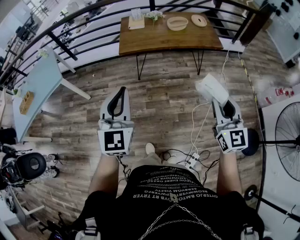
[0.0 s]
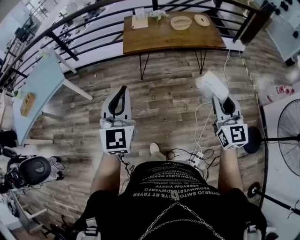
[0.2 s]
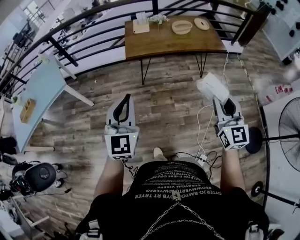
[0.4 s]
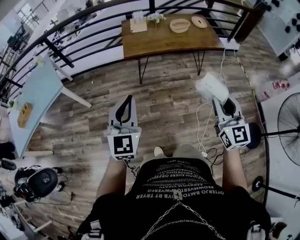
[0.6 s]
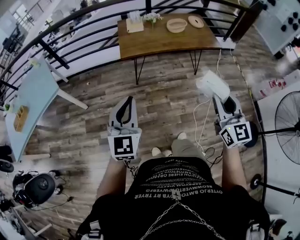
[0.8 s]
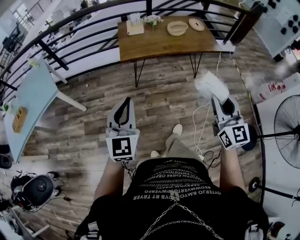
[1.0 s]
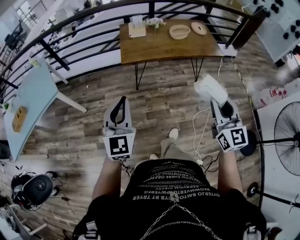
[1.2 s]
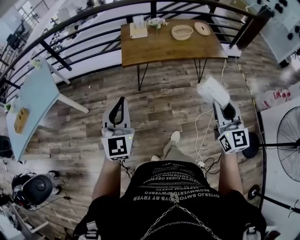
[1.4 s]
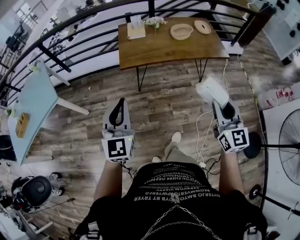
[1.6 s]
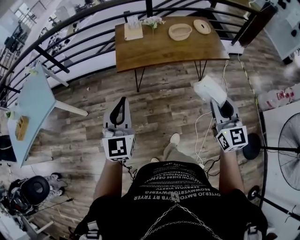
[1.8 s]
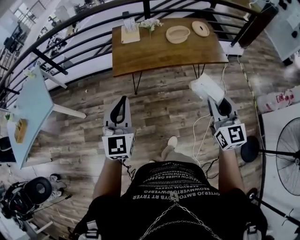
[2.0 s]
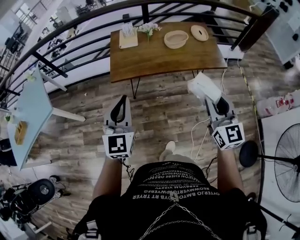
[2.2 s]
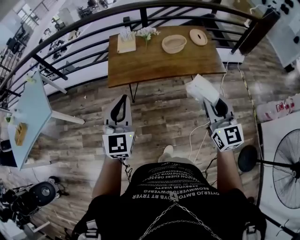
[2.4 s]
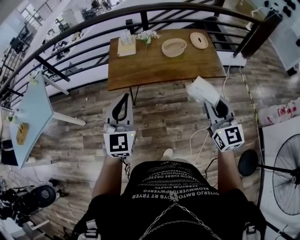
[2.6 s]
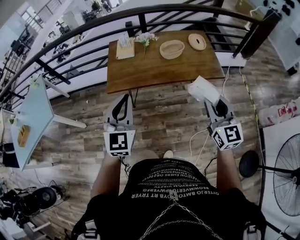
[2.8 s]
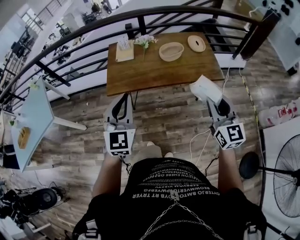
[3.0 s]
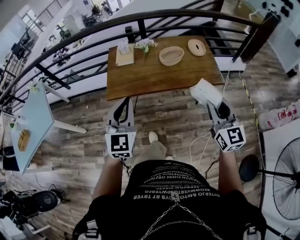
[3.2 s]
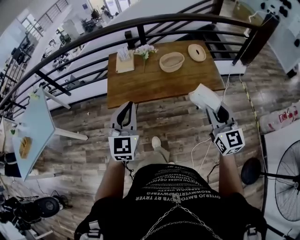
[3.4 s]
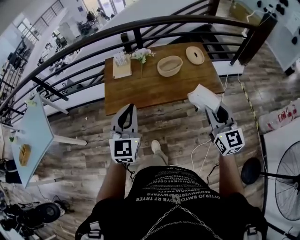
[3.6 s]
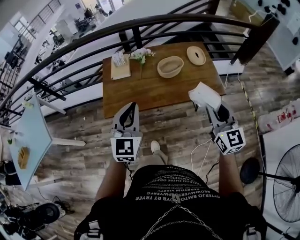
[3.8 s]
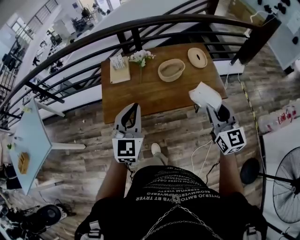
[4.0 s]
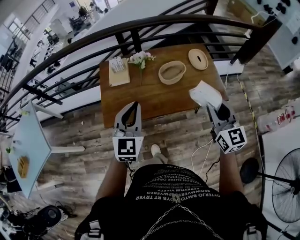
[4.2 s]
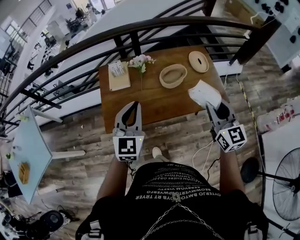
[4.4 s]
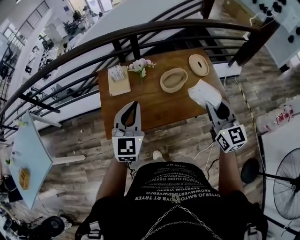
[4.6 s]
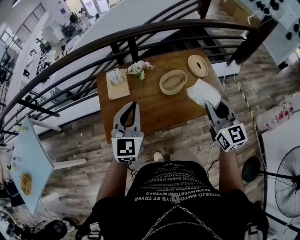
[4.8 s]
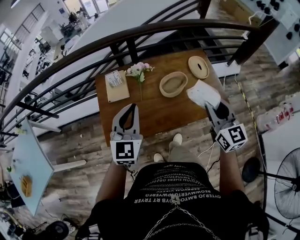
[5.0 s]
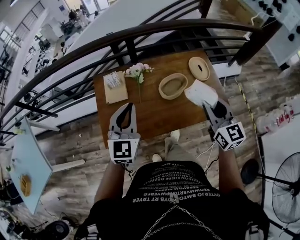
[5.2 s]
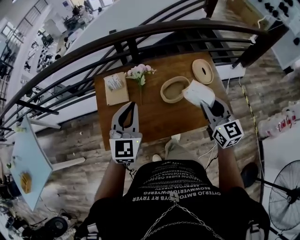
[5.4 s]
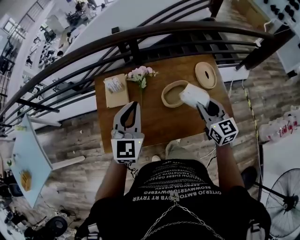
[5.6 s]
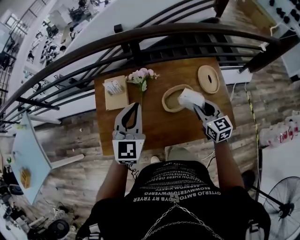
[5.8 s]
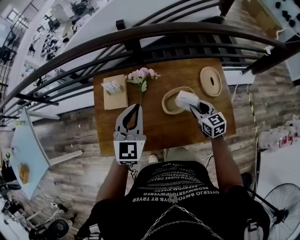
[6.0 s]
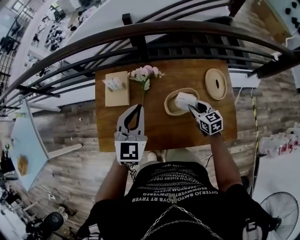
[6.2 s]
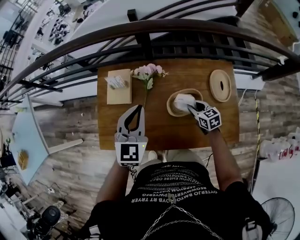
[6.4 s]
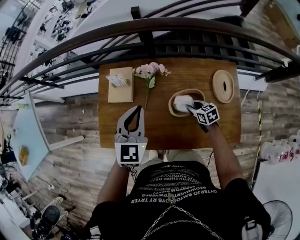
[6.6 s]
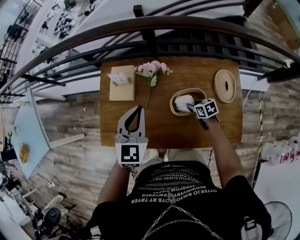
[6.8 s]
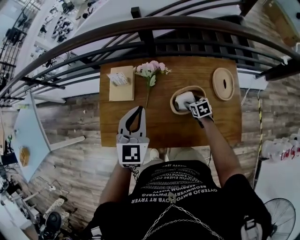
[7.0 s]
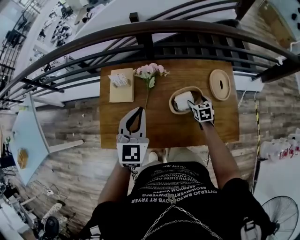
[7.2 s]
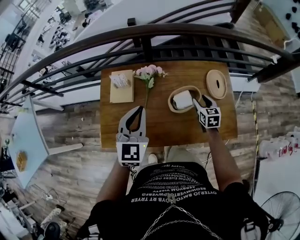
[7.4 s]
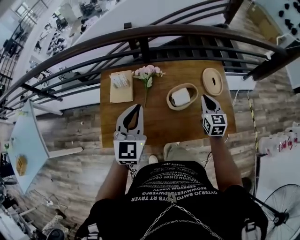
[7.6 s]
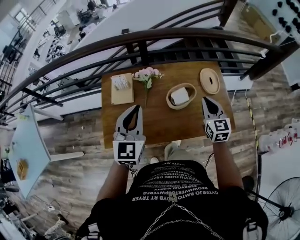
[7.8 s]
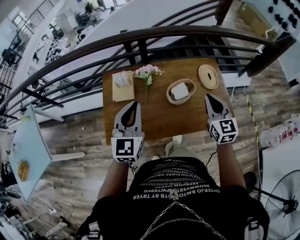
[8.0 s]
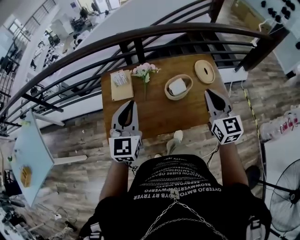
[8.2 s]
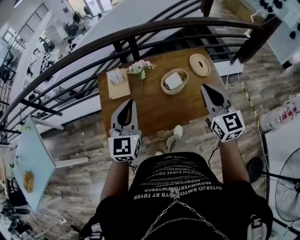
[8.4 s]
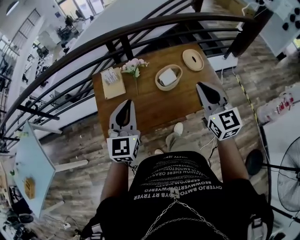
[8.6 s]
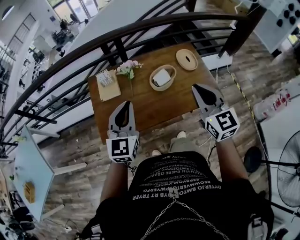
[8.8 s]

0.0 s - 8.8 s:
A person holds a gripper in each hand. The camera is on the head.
0.0 s - 1.4 s: The left gripper shifts approximately 15 cm forward, to the left and downward, while the right gripper travels forward and to the left by about 15 cm.
1.4 s - 3.0 s: Both grippers travel together forward and to the right, roughly 30 cm.
3.0 s - 4.4 s: The grippers both shift forward by about 25 cm.
4.4 s - 5.8 s: The right gripper shifts roughly 30 cm forward and downward, and rotates approximately 20 degrees. The left gripper heads forward, covering roughly 20 cm.
5.8 s - 7.4 s: The right gripper shifts approximately 10 cm downward, and opens.
7.4 s - 8.8 s: The left gripper travels backward by roughly 15 cm, while the right gripper moves upward and backward, roughly 40 cm, swivels about 30 degrees, and closes its fingers.

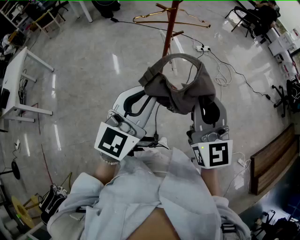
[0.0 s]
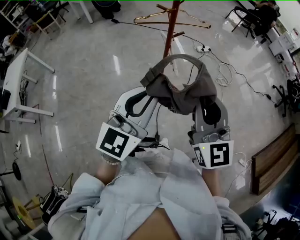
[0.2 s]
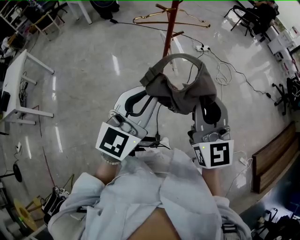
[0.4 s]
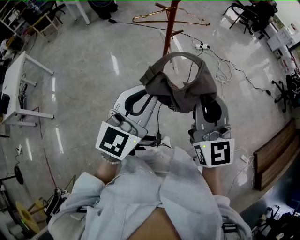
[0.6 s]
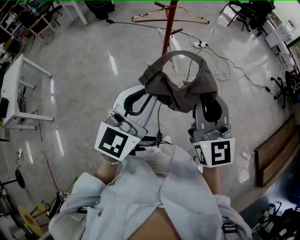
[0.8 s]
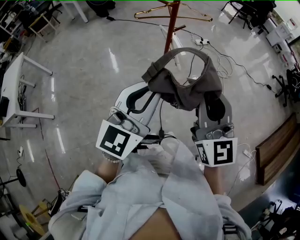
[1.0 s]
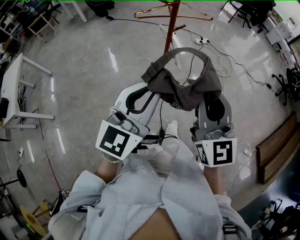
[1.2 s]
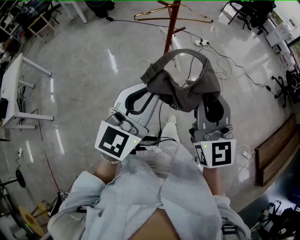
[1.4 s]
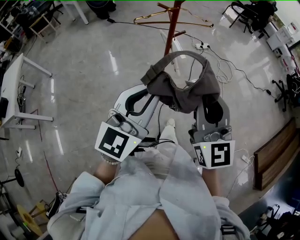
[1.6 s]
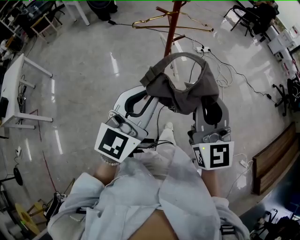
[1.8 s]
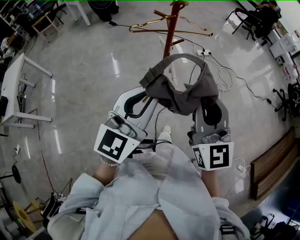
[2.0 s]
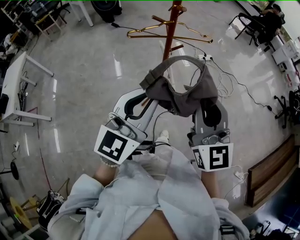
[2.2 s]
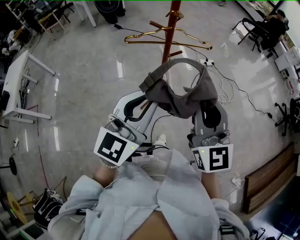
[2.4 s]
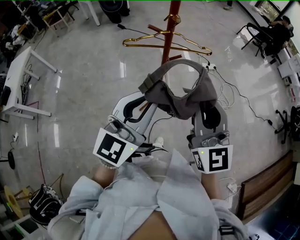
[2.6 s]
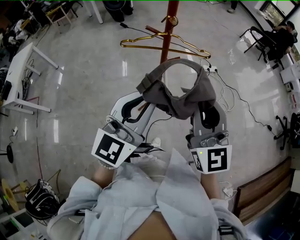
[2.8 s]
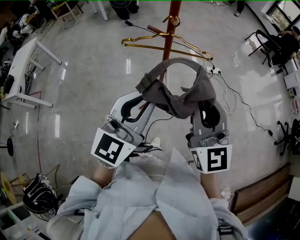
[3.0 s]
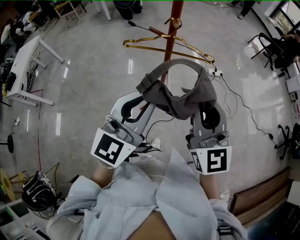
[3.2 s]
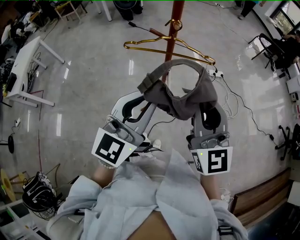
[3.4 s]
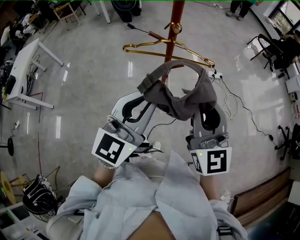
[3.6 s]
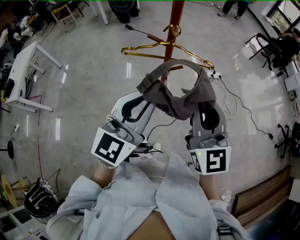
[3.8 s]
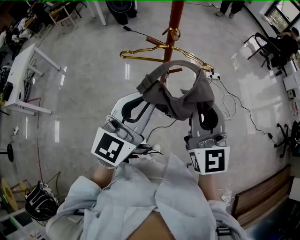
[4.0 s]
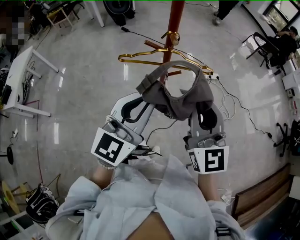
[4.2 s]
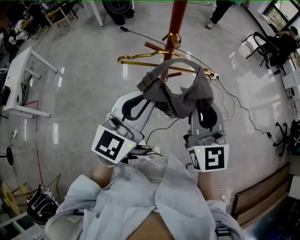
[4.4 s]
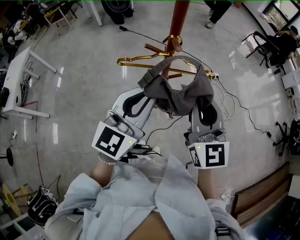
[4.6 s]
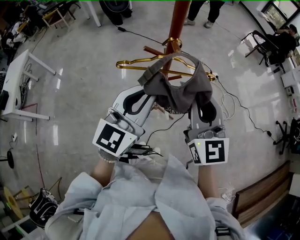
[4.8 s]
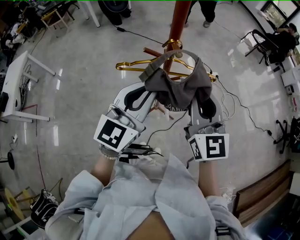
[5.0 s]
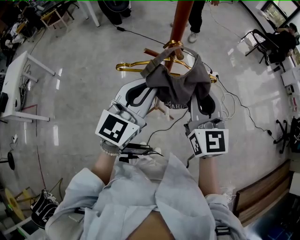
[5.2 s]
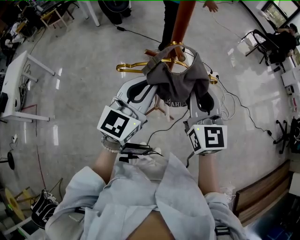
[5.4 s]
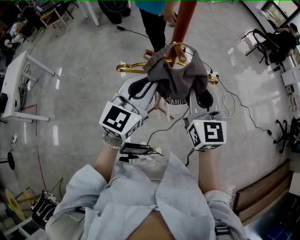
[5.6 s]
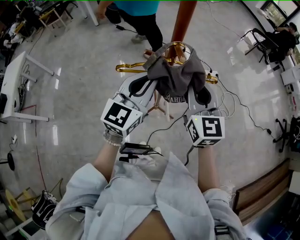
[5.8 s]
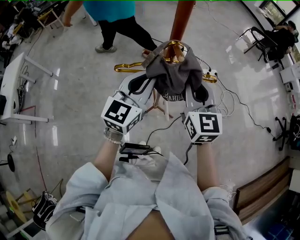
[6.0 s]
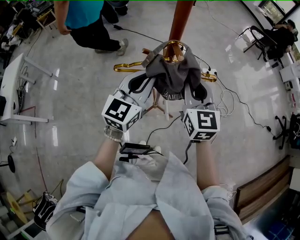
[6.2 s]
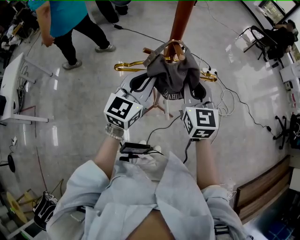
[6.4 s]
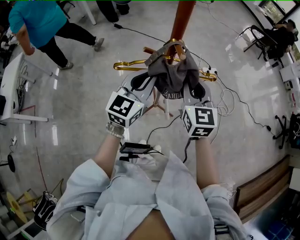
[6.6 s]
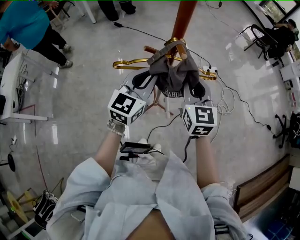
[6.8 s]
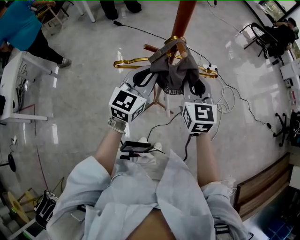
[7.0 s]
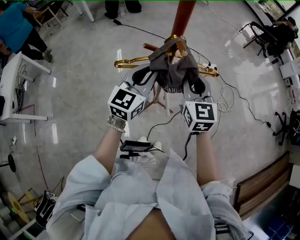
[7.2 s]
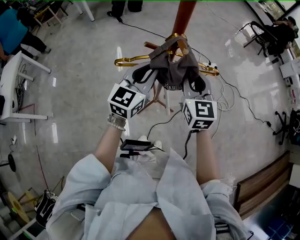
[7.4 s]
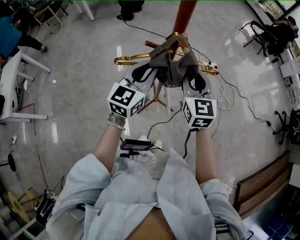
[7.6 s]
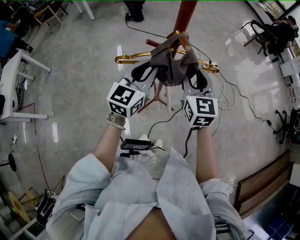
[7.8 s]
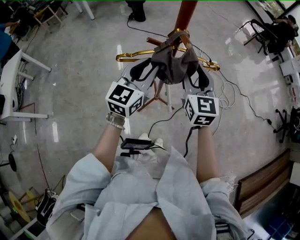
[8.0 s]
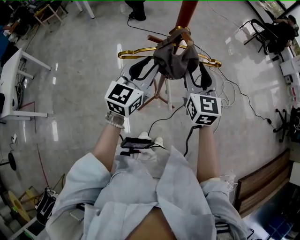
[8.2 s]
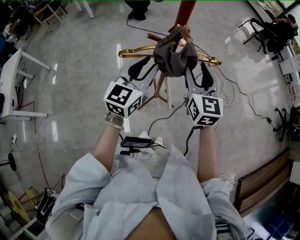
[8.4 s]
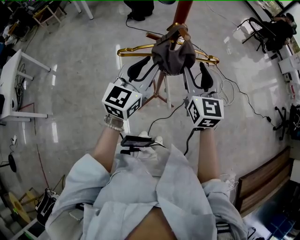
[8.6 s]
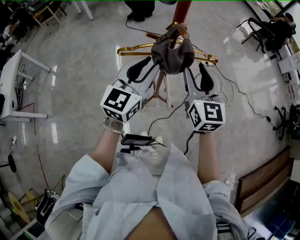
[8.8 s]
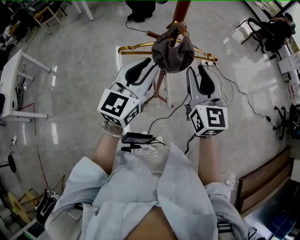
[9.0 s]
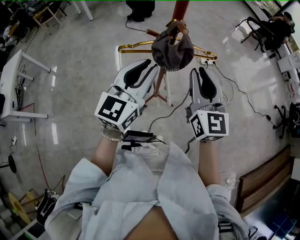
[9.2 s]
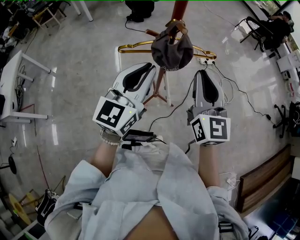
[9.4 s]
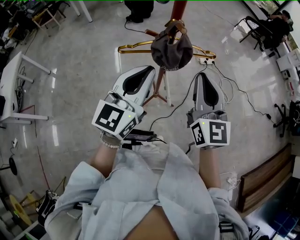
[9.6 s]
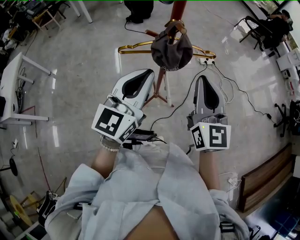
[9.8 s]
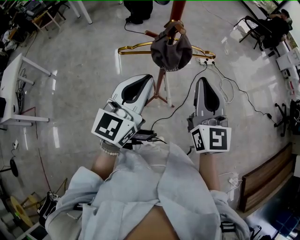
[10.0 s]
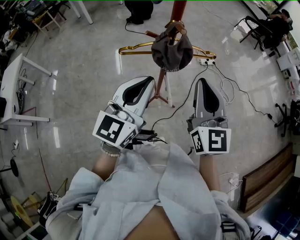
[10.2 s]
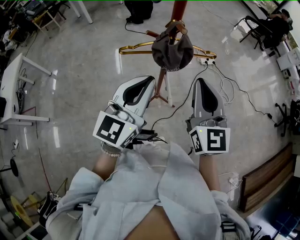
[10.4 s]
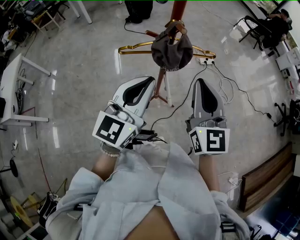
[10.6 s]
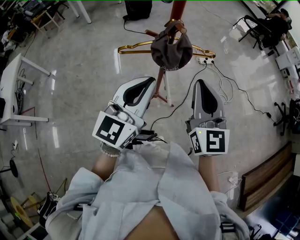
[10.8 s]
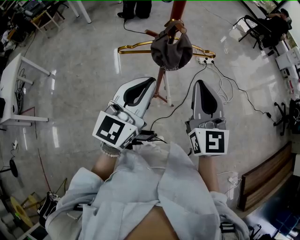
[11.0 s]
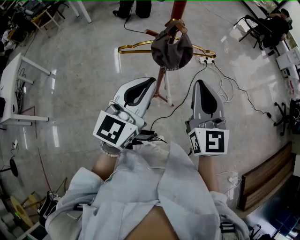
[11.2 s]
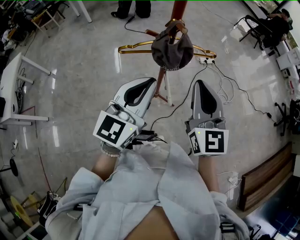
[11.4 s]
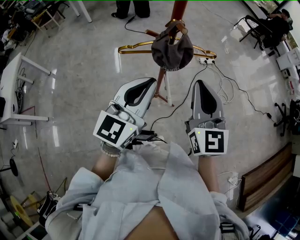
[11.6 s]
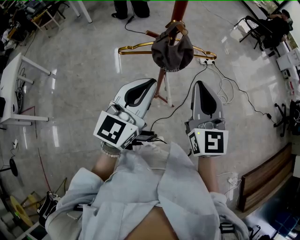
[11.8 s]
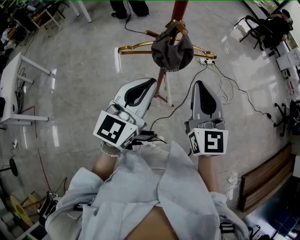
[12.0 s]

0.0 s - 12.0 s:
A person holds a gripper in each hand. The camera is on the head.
0.0 s - 1.6 s: The grippers stay close to where they were, moving slightly.
1.6 s - 3.0 s: The grippers both shift forward and to the right by about 20 cm.
3.0 s - 4.4 s: Both grippers travel together forward, approximately 10 cm.
4.4 s - 6.0 s: Both grippers travel together forward and downward, about 15 cm.
6.0 s - 7.6 s: The right gripper shifts by about 5 cm.
7.6 s - 9.0 s: The grippers both shift backward and upward by roughly 10 cm.
9.0 s - 10.4 s: The two grippers go roughly 5 cm backward. The left gripper closes its fingers, while the right gripper closes.
10.4 s - 12.0 s: The two grippers keep their place.

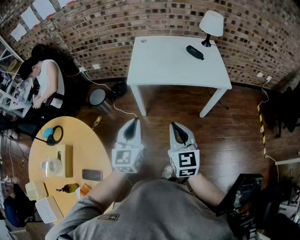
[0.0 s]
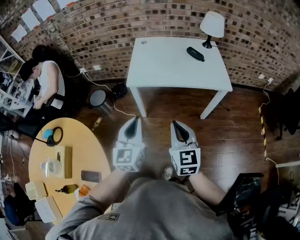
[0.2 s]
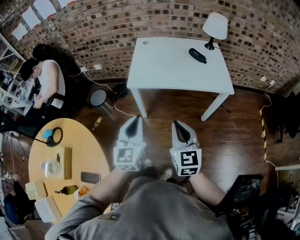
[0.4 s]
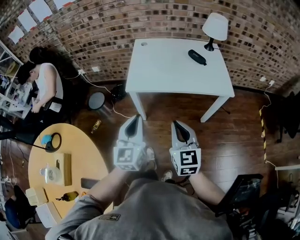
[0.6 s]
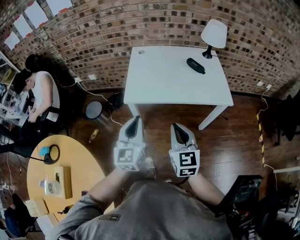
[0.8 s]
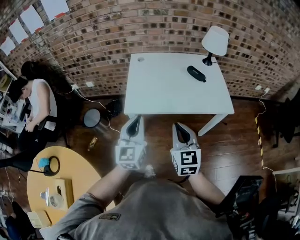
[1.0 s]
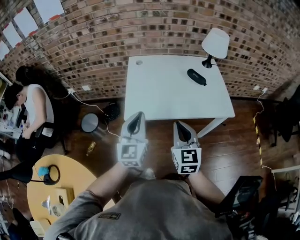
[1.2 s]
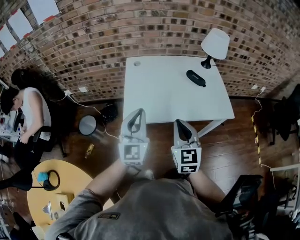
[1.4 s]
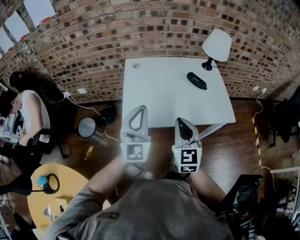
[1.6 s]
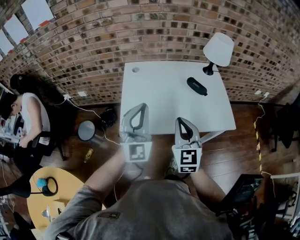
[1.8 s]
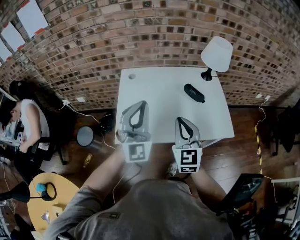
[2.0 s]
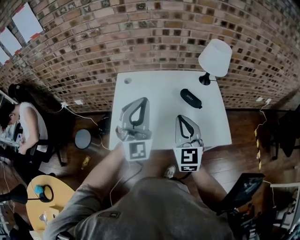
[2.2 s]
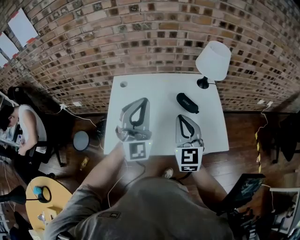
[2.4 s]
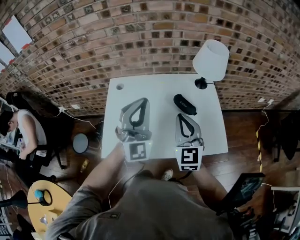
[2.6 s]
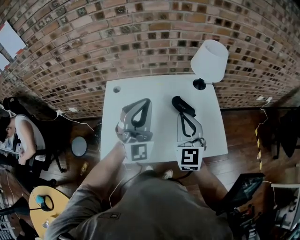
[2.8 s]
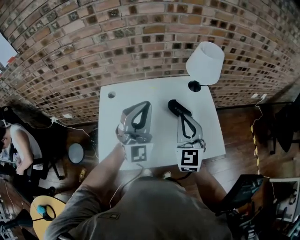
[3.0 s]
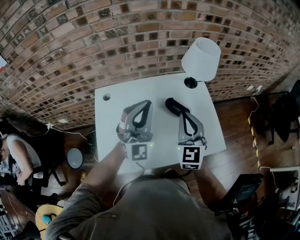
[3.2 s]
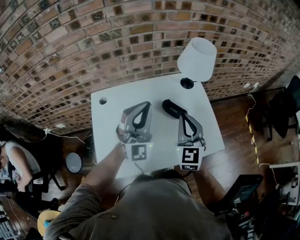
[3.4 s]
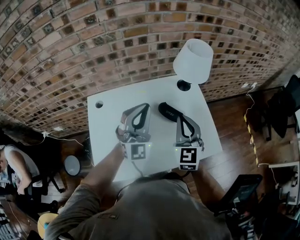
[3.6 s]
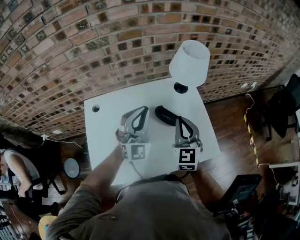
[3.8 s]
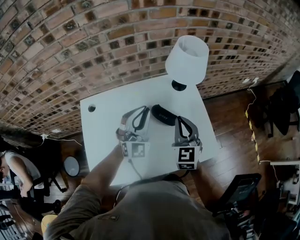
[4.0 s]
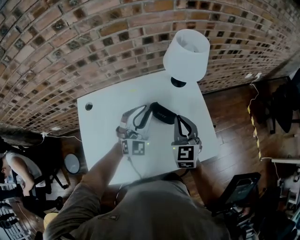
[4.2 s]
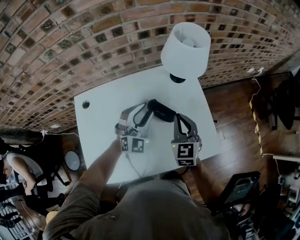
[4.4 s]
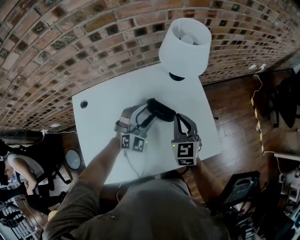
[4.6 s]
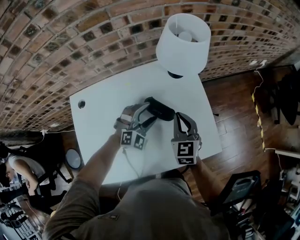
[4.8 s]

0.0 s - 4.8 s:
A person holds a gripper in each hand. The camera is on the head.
0.0 s - 1.6 s: Both grippers move forward, some 30 cm. The left gripper changes its angle by some 30 degrees.
1.6 s - 3.2 s: The two grippers go some 30 cm forward and to the right. The left gripper swivels some 20 degrees.
3.2 s - 4.8 s: The right gripper moves downward, forward and to the right, some 20 cm, and swivels about 20 degrees, while the left gripper shifts some 30 cm downward, forward and to the right, tips its fingers downward by roughly 50 degrees, and opens up.
